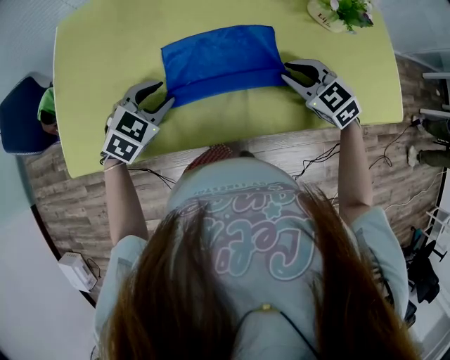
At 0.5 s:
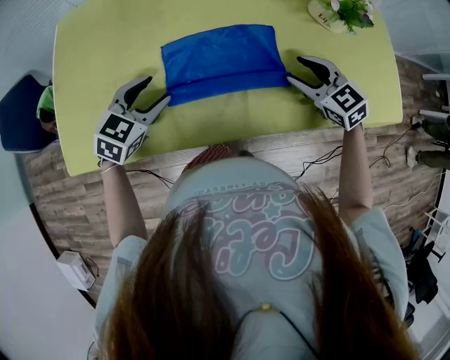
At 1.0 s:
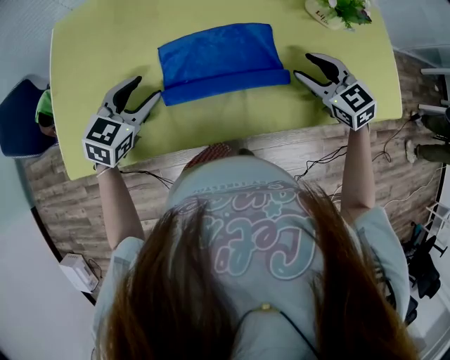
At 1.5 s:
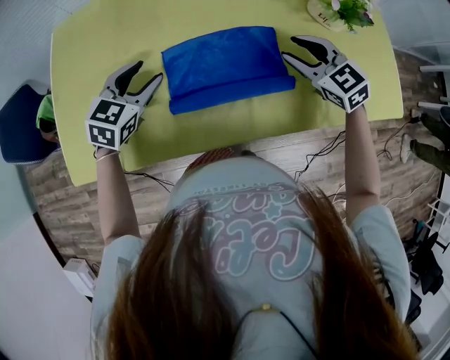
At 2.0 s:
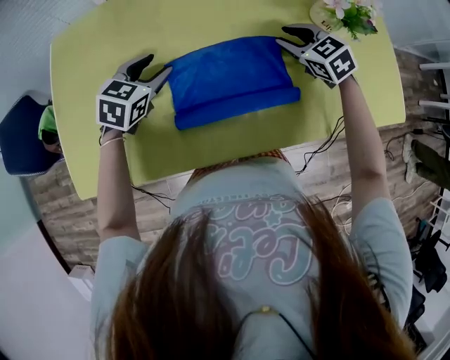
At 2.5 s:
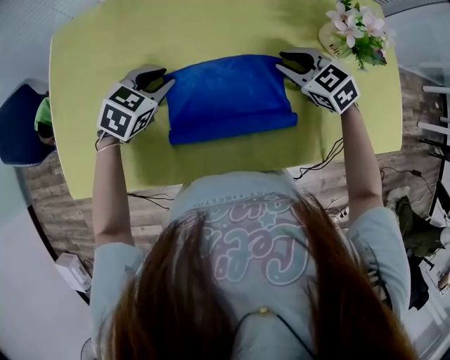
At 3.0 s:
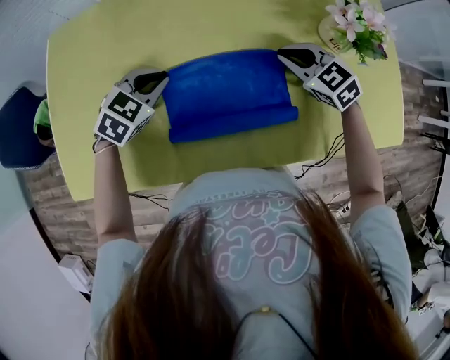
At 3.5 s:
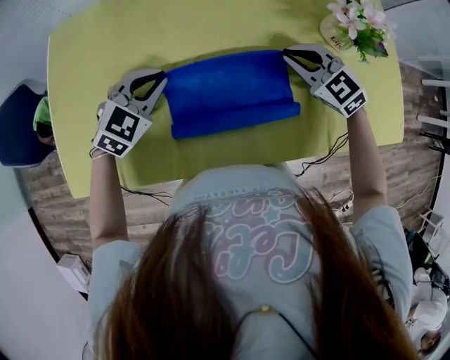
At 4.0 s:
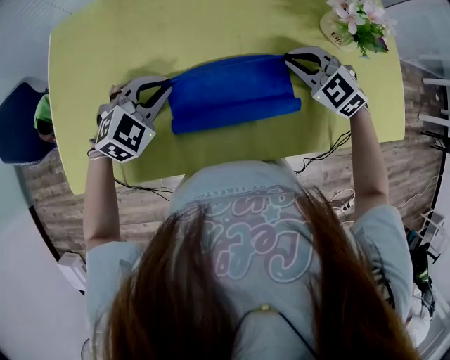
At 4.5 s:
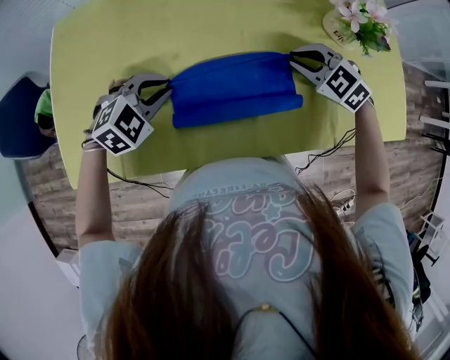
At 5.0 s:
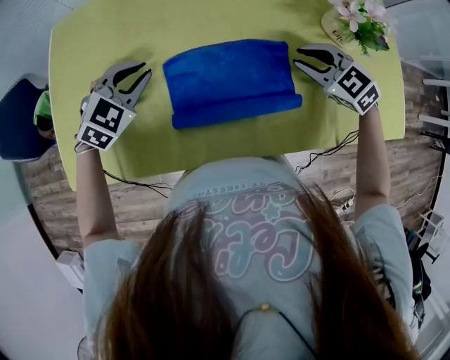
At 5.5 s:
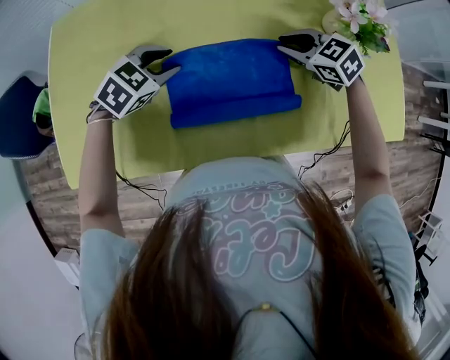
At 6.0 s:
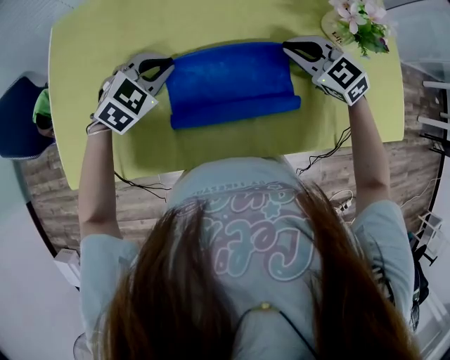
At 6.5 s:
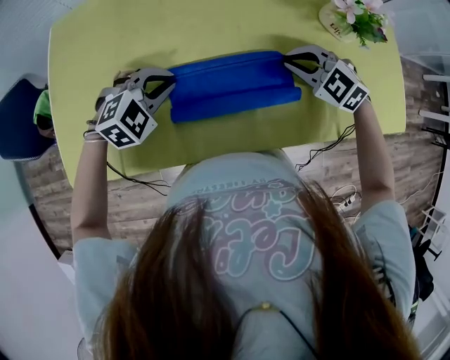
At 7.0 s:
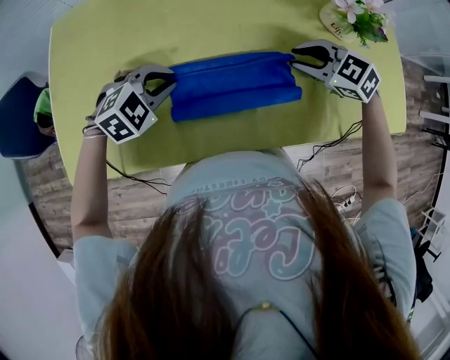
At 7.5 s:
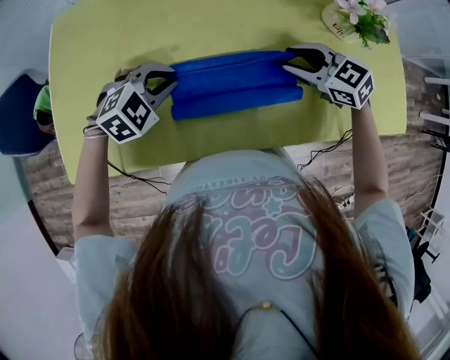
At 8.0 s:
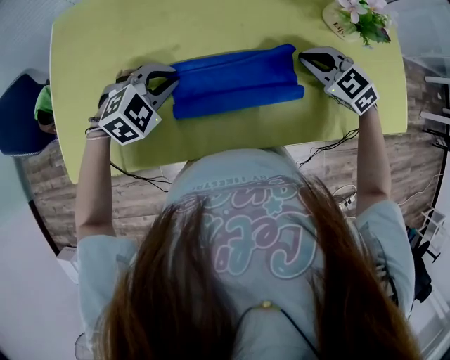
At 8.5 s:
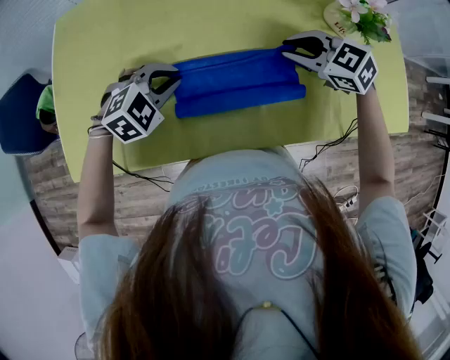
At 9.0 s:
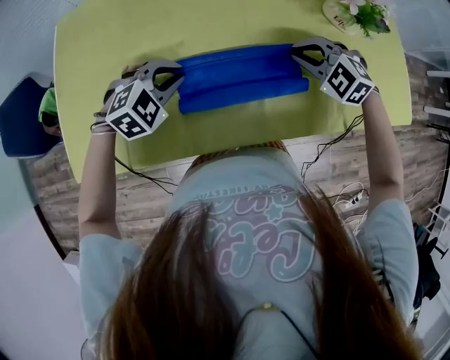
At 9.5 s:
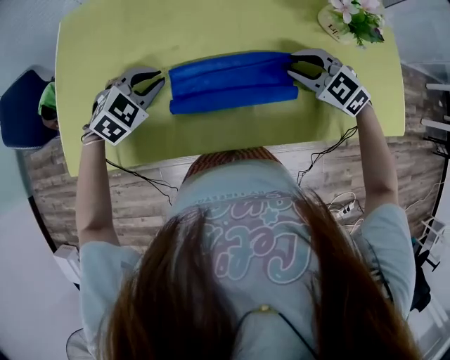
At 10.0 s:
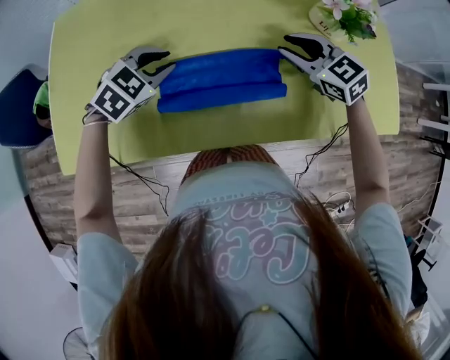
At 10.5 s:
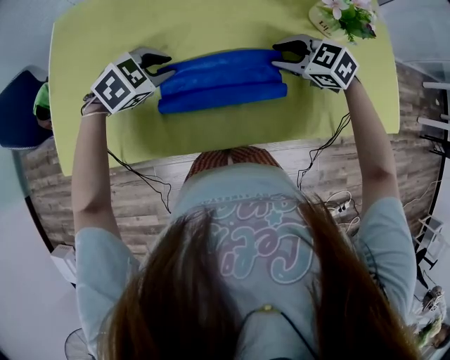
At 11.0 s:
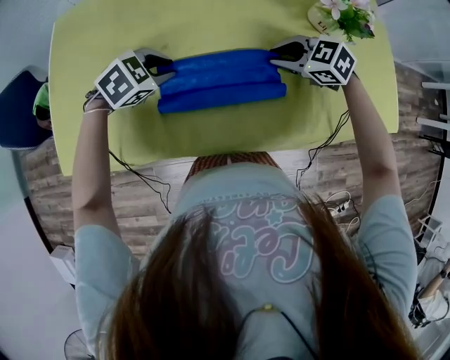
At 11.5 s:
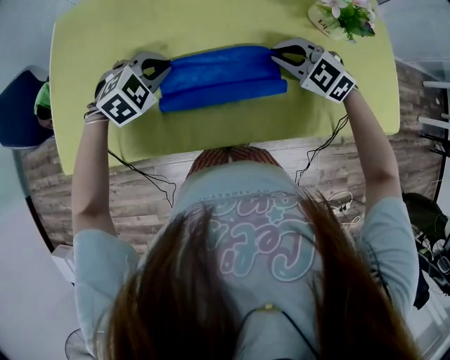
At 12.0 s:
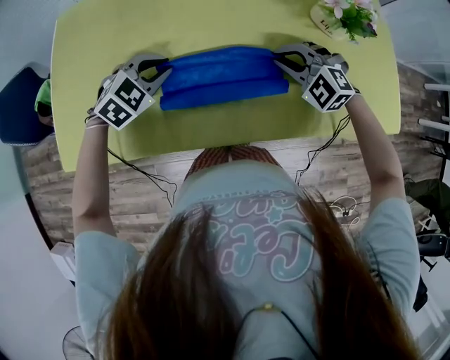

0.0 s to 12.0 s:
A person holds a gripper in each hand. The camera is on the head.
0.0 to 2.0 s: Both grippers travel together forward, about 15 cm.
2.0 to 4.0 s: The right gripper swivels approximately 20 degrees, and closes; the left gripper goes some 5 cm backward, swivels approximately 30 degrees, and closes up.
4.0 to 6.0 s: The left gripper opens, then closes again.
6.0 to 8.0 s: The left gripper shifts some 5 cm backward; the right gripper ends up roughly 5 cm from where it was, and opens and closes again.
8.0 to 10.0 s: The right gripper opens up; the left gripper changes place by approximately 5 cm.
10.0 to 12.0 s: The right gripper changes place by about 5 cm, and twists some 40 degrees counterclockwise, seen from behind.

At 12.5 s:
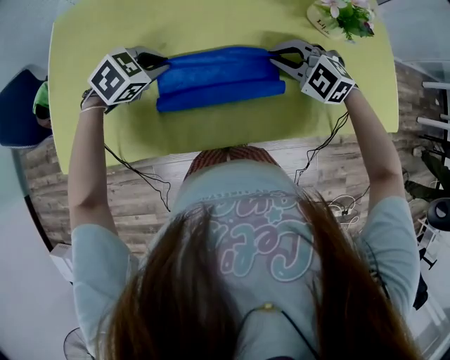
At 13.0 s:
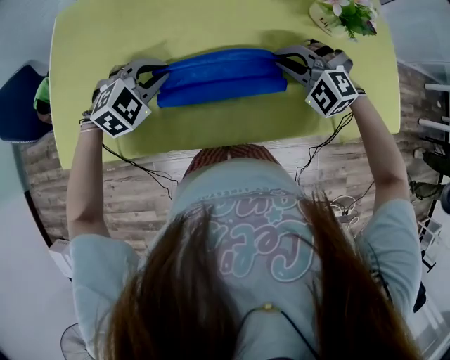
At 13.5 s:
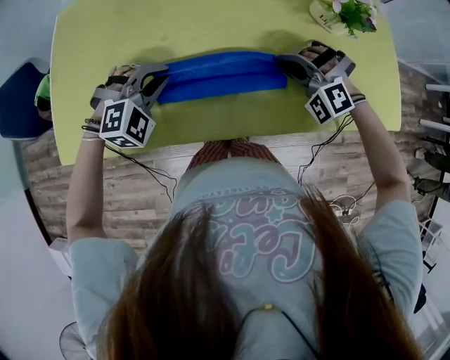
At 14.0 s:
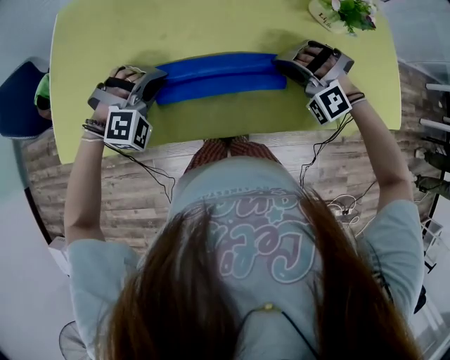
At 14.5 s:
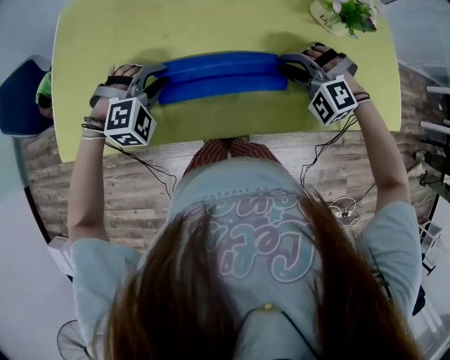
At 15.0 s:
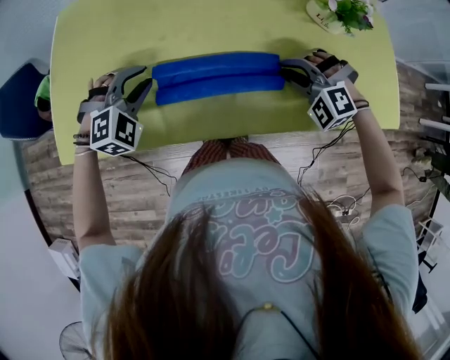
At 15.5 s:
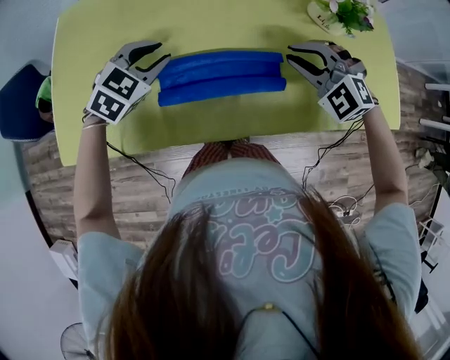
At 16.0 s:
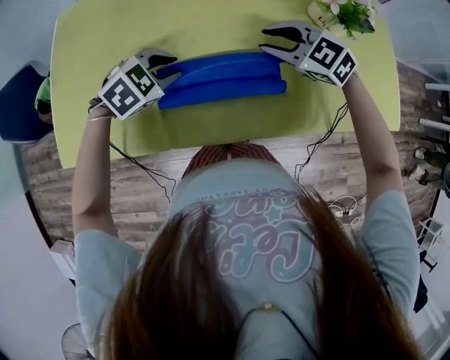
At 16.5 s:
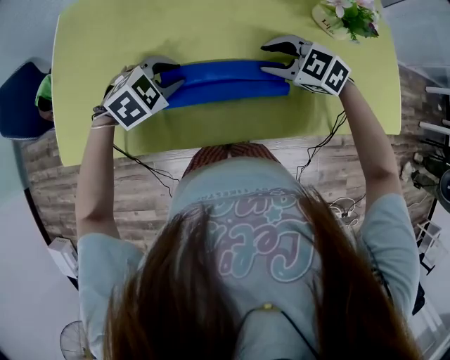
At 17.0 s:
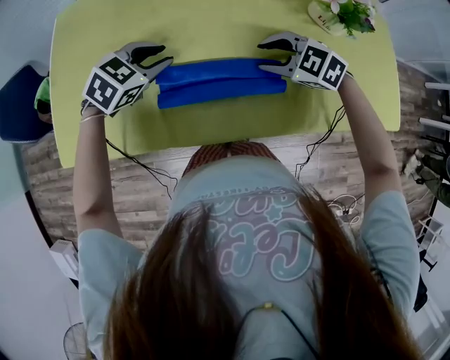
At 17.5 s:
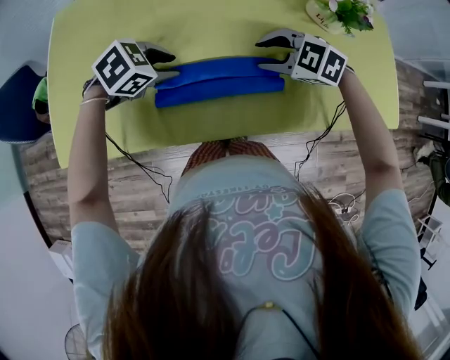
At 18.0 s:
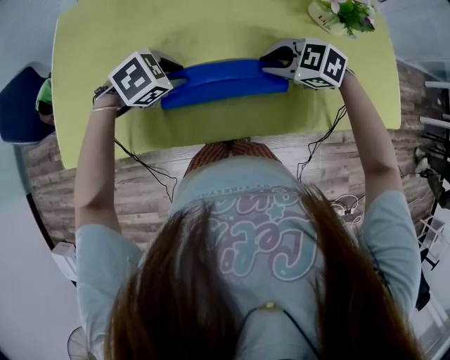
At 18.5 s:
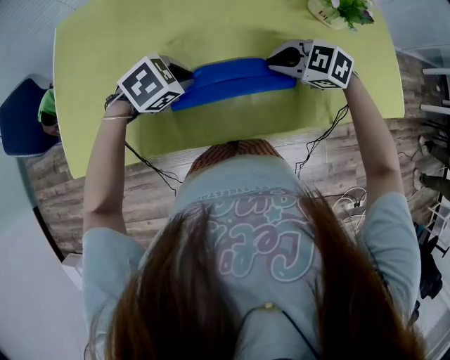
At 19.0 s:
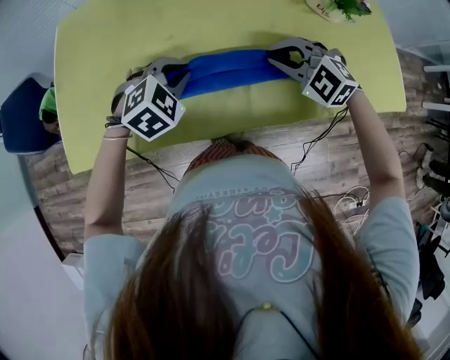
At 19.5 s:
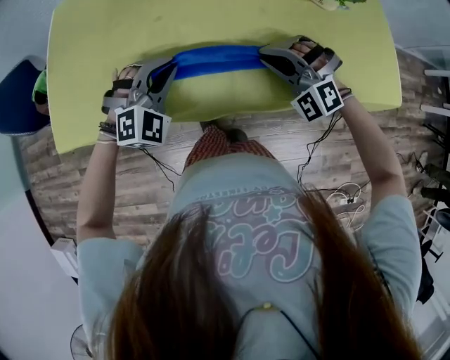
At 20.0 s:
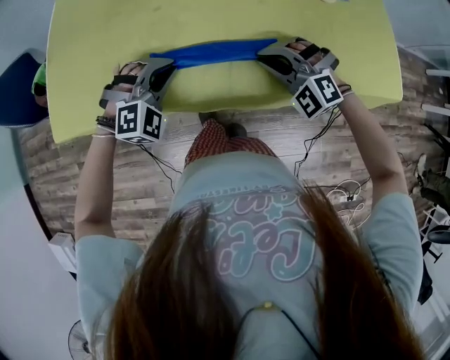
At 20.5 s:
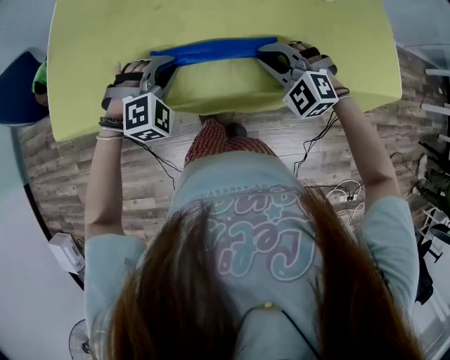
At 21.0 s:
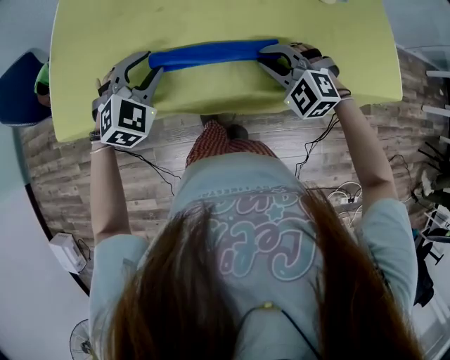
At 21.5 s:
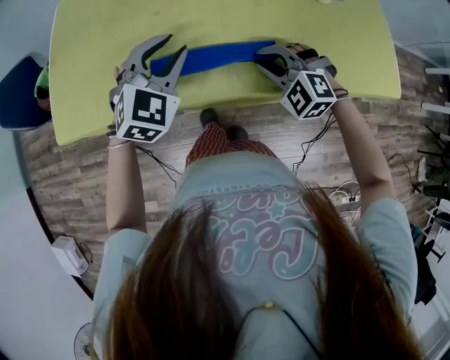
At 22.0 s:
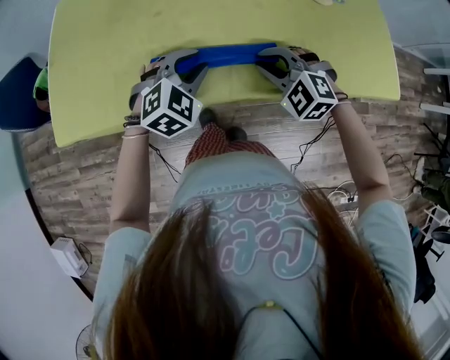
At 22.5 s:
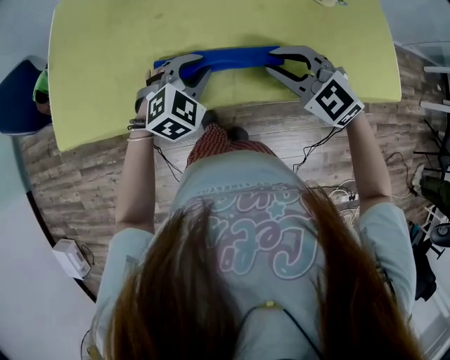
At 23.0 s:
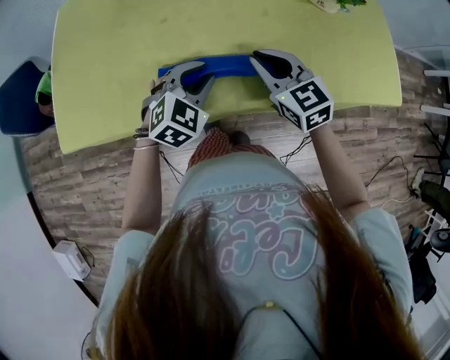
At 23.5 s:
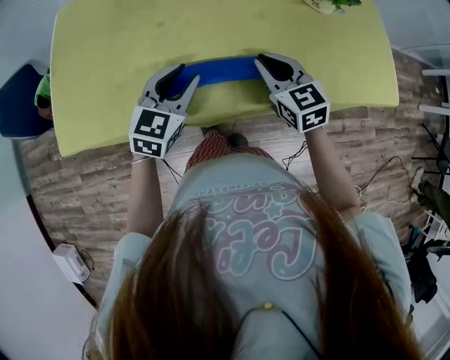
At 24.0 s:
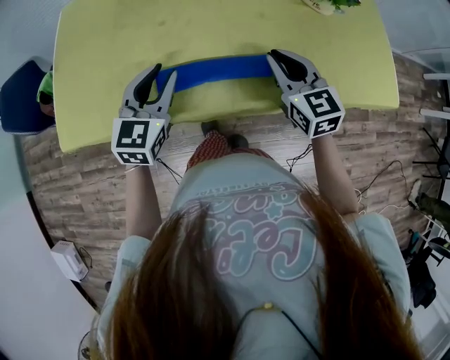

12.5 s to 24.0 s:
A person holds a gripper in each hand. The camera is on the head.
12.5 to 14.5 s: The right gripper rotates about 30 degrees. The left gripper shifts by some 5 cm, and rotates some 40 degrees.
14.5 to 16.5 s: The left gripper turns by roughly 30 degrees; the right gripper twists some 50 degrees clockwise, seen from behind.
16.5 to 18.5 s: The right gripper closes up.
18.5 to 20.0 s: The right gripper changes place by some 10 cm, and rolls counterclockwise, seen from behind, by roughly 40 degrees. The left gripper ends up approximately 10 cm from where it was, and turns by about 50 degrees.
20.0 to 22.0 s: The left gripper goes some 5 cm to the right, and swivels about 30 degrees.
22.0 to 24.0 s: The right gripper heads upward, covering some 5 cm, and rolls clockwise, seen from behind, by roughly 50 degrees, while the left gripper is displaced to the left and upward by roughly 10 cm, and swivels roughly 40 degrees.

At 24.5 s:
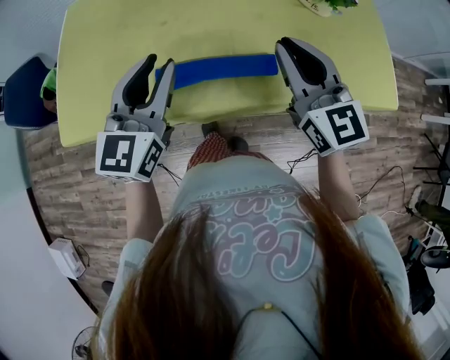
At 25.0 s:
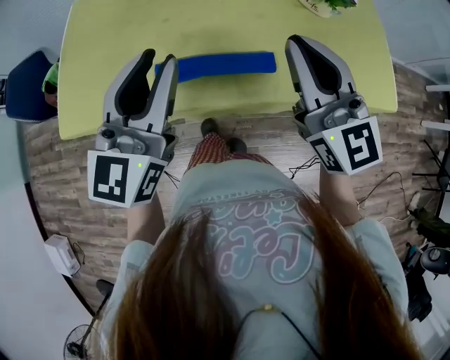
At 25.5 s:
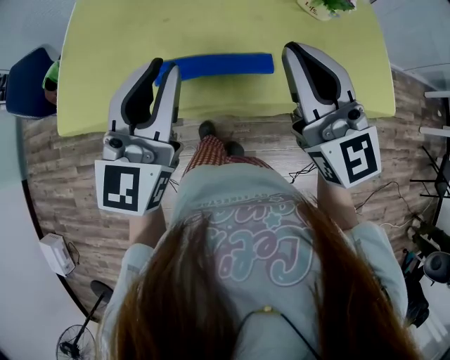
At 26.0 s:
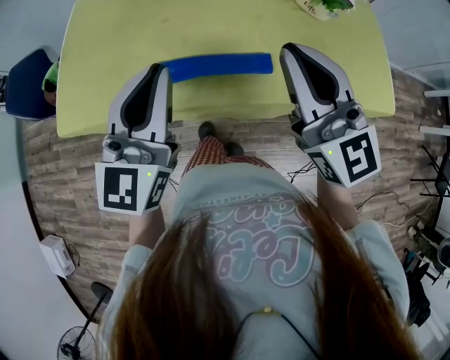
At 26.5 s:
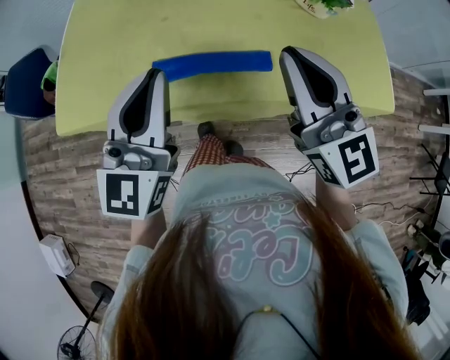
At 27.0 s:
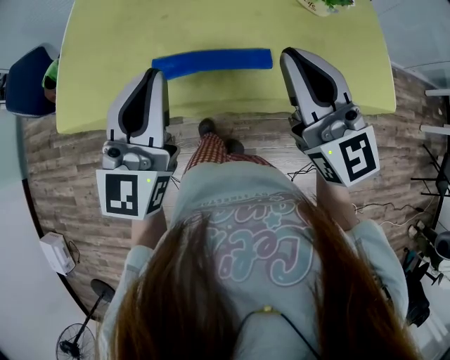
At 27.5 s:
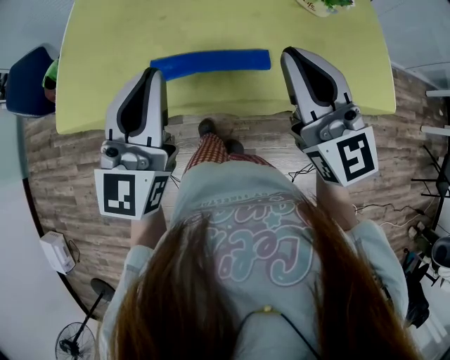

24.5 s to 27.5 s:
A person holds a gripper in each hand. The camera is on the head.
24.5 to 26.0 s: The left gripper moves backward and upward, roughly 10 cm, while the right gripper moves upward and backward, roughly 10 cm.
26.0 to 27.5 s: The grippers stay close to where they were, moving slightly.
